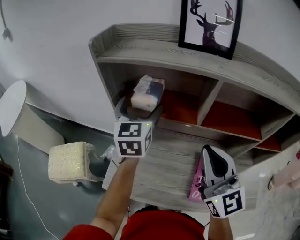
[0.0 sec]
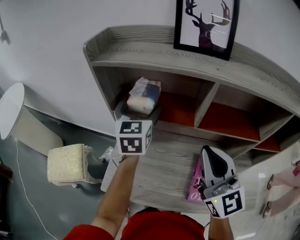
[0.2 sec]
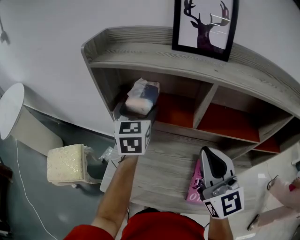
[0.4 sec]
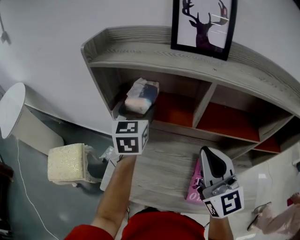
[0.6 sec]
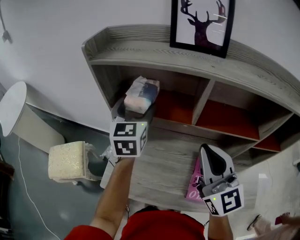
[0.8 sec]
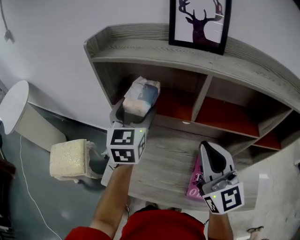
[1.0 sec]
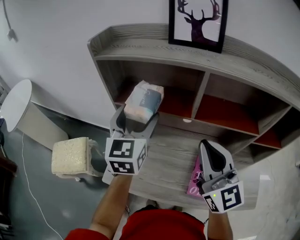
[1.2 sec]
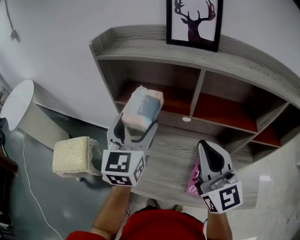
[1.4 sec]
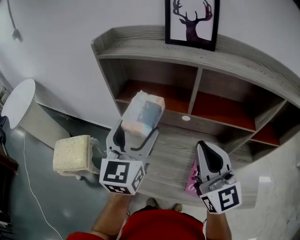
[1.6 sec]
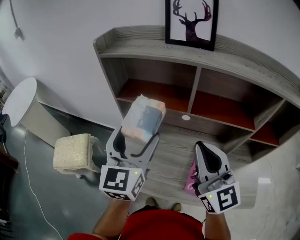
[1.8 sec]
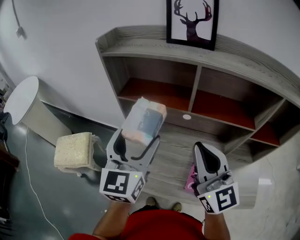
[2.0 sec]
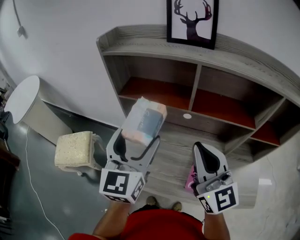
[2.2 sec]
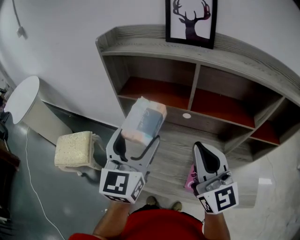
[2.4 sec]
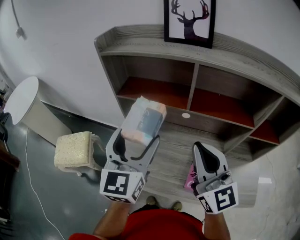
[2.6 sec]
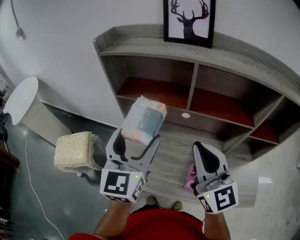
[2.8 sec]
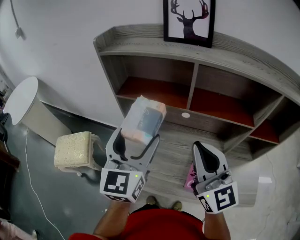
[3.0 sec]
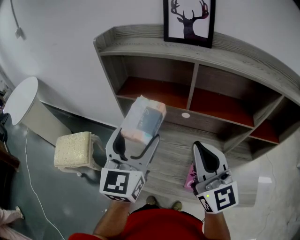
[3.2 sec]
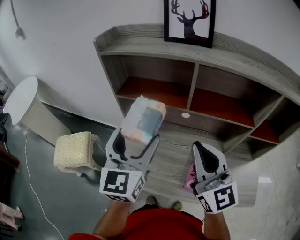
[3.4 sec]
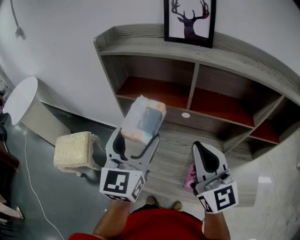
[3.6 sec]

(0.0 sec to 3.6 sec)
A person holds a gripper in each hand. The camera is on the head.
0.0 sec - 1.8 sec: The right gripper goes some 5 cm backward. Meanwhile the left gripper heads backward, covering roughly 20 cm.
1.8 sec - 3.6 sec: The grippers make only small movements.

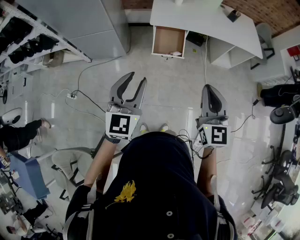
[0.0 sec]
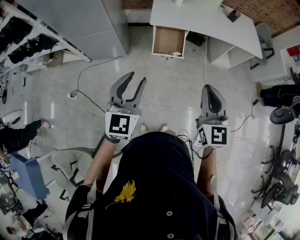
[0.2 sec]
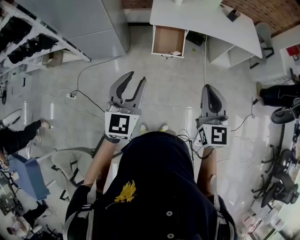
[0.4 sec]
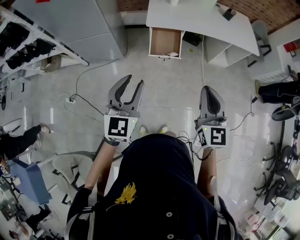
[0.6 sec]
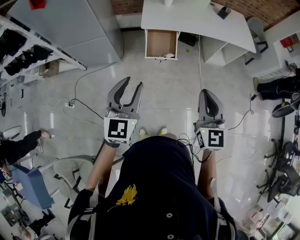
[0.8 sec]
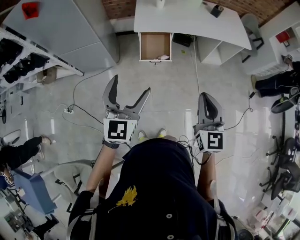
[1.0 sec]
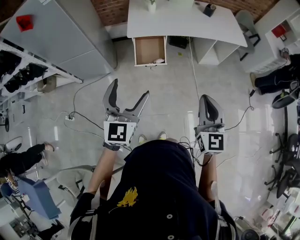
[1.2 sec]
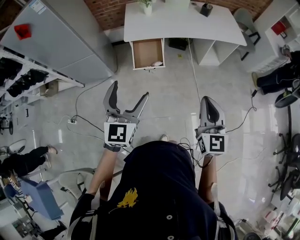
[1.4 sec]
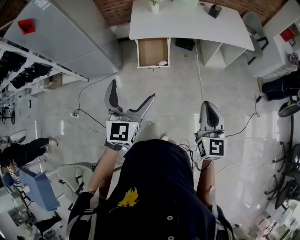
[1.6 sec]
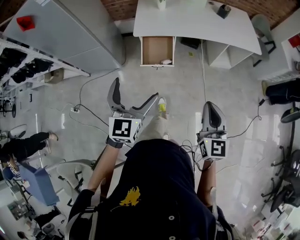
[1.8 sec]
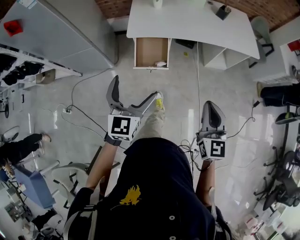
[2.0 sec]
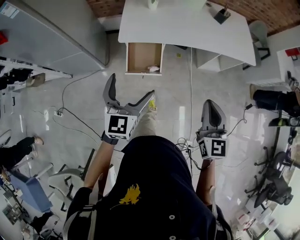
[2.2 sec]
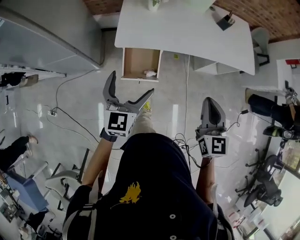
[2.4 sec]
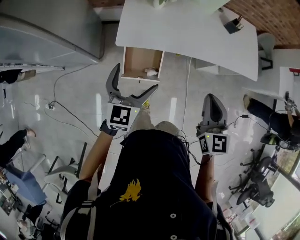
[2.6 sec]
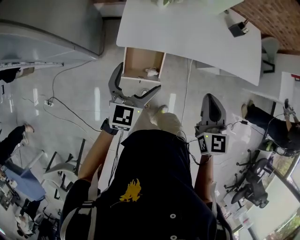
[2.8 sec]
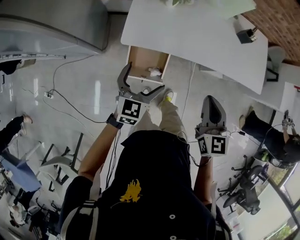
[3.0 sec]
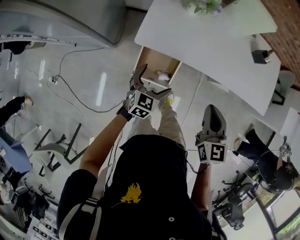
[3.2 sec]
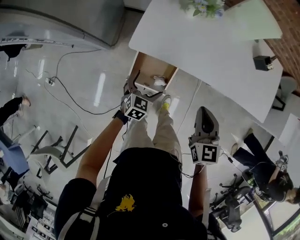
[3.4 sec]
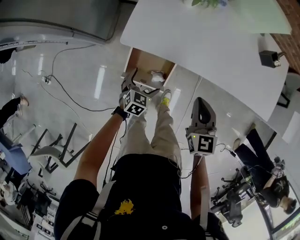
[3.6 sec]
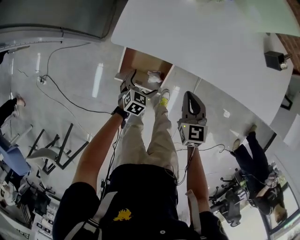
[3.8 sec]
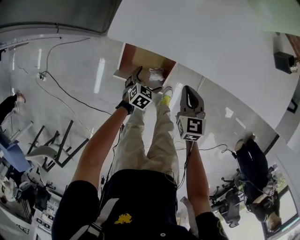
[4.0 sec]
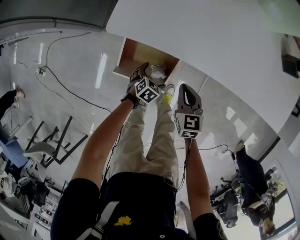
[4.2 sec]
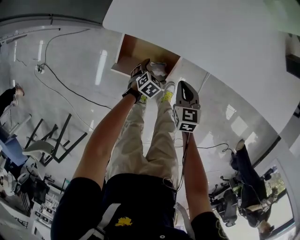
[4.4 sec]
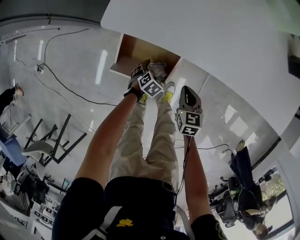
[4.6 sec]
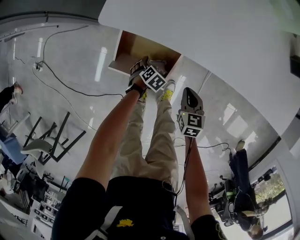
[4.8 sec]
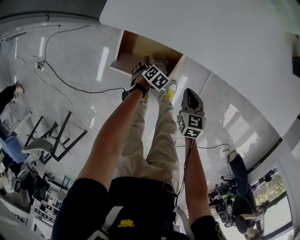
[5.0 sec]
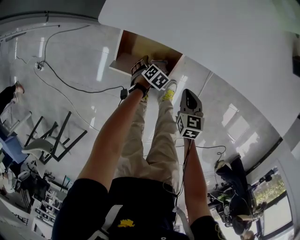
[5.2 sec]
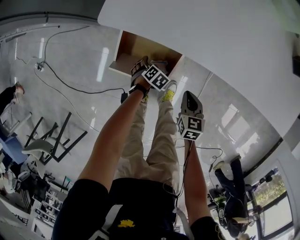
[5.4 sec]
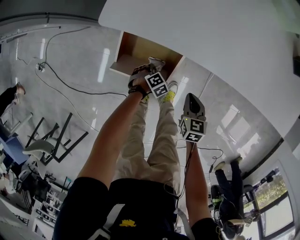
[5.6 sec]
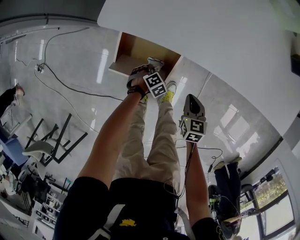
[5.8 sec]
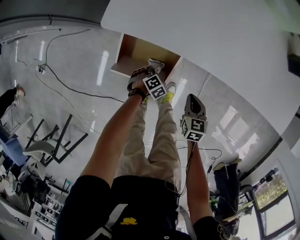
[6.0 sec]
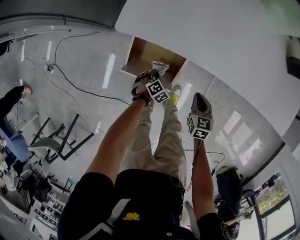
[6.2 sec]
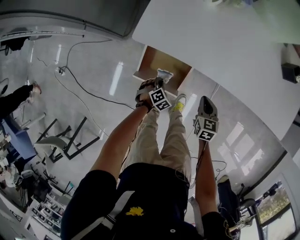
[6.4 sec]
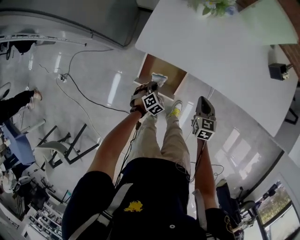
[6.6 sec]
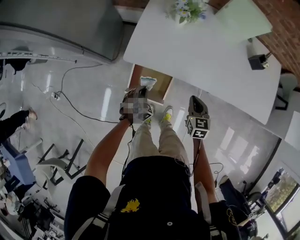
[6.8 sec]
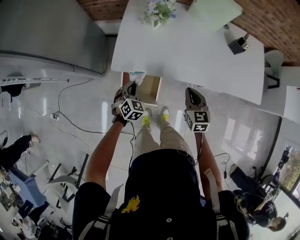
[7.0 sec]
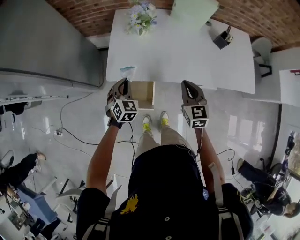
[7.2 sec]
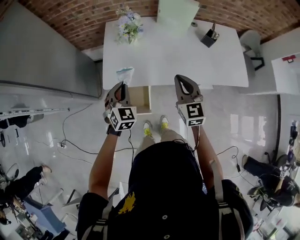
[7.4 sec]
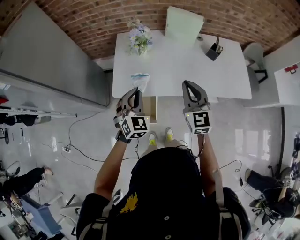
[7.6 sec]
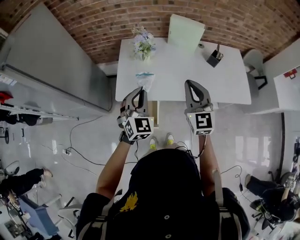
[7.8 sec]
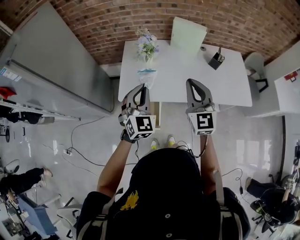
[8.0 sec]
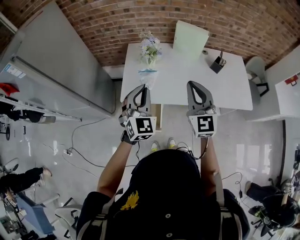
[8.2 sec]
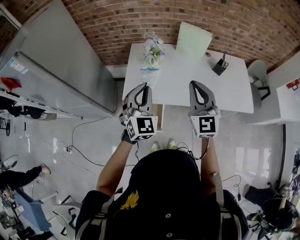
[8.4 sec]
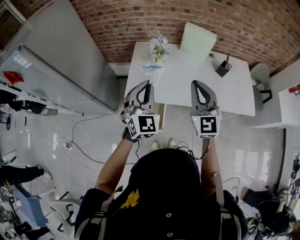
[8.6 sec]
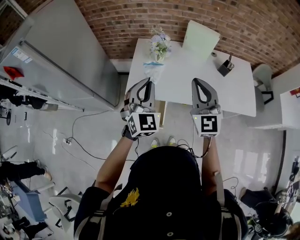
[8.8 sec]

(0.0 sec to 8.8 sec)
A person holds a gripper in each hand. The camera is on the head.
0.0 sec - 1.4 sec: The grippers both shift to the right by roughly 15 cm. The left gripper opens.
1.4 sec - 3.0 sec: The pair of grippers is taken forward, roughly 50 cm. The right gripper rotates approximately 20 degrees. Meanwhile the left gripper goes some 20 cm downward, and swivels roughly 20 degrees.
3.0 sec - 4.4 sec: The two grippers go about 50 cm downward. The right gripper turns by roughly 20 degrees, while the left gripper tilts its fingers about 40 degrees downward.
4.4 sec - 5.8 sec: The right gripper ends up about 10 cm from where it was. Meanwhile the left gripper heads downward, covering about 5 cm, changes its angle by roughly 30 degrees, and closes its fingers.
5.8 sec - 7.4 sec: Both grippers travel together upward, approximately 60 cm. The left gripper tips its fingers upward by about 50 degrees; the right gripper tips its fingers upward by some 40 degrees.
7.4 sec - 8.8 sec: Both grippers travel together upward, about 20 cm. The right gripper swivels approximately 20 degrees. The left gripper rotates roughly 20 degrees.

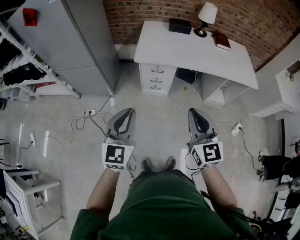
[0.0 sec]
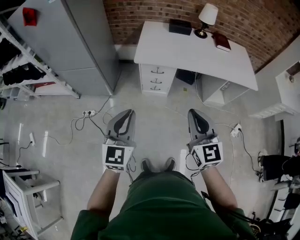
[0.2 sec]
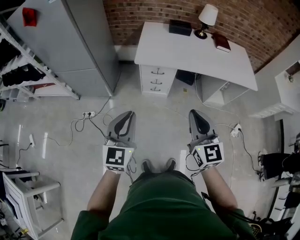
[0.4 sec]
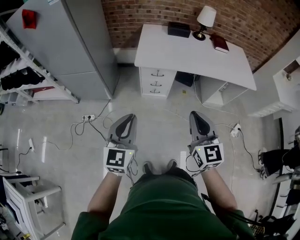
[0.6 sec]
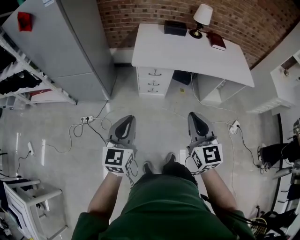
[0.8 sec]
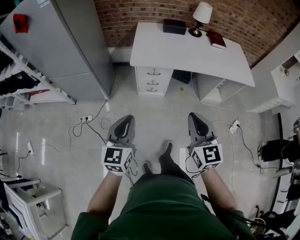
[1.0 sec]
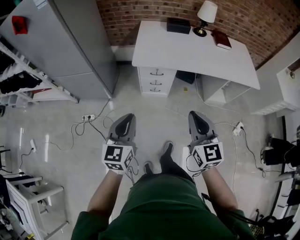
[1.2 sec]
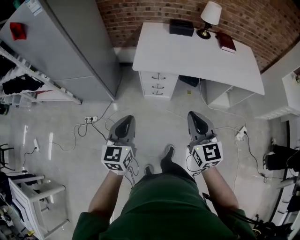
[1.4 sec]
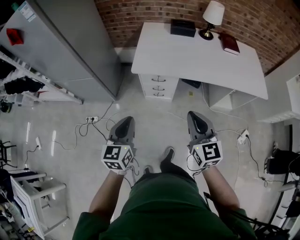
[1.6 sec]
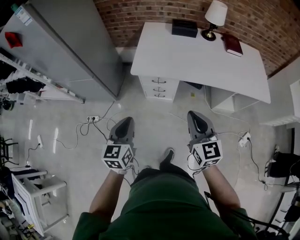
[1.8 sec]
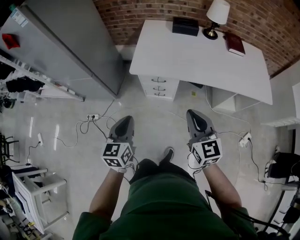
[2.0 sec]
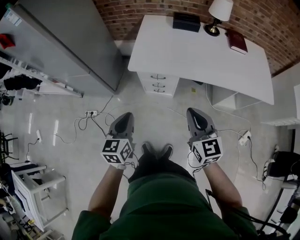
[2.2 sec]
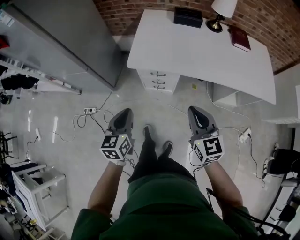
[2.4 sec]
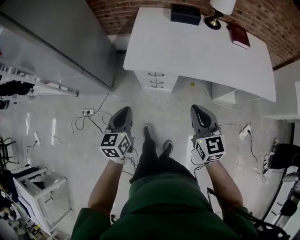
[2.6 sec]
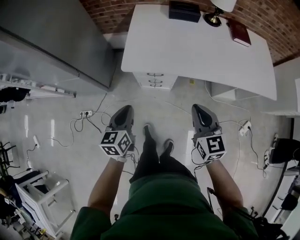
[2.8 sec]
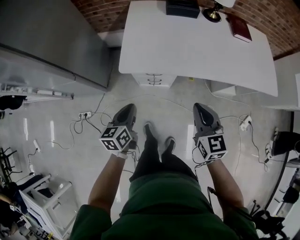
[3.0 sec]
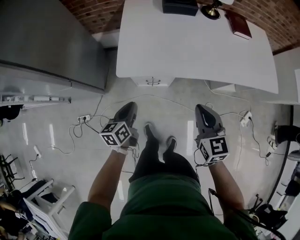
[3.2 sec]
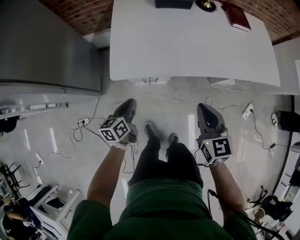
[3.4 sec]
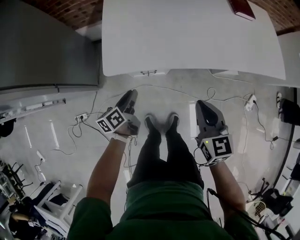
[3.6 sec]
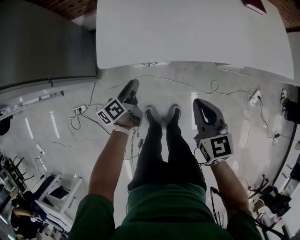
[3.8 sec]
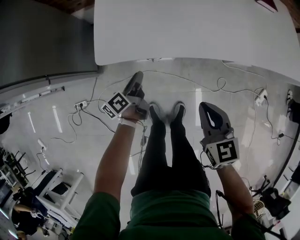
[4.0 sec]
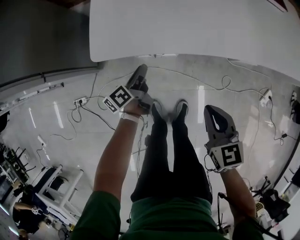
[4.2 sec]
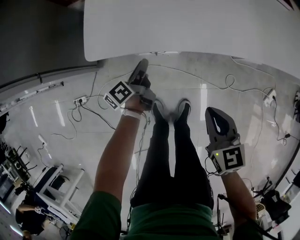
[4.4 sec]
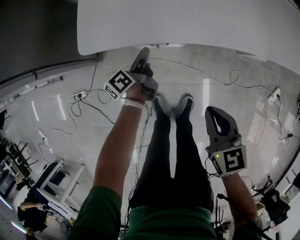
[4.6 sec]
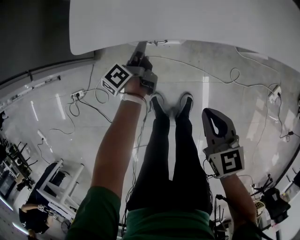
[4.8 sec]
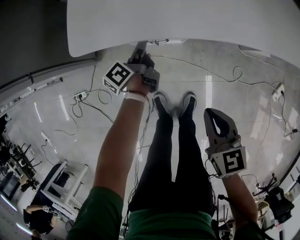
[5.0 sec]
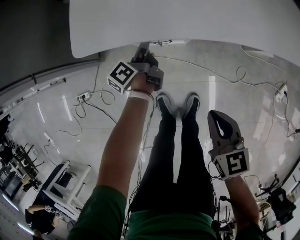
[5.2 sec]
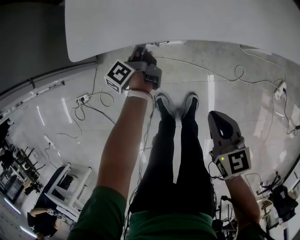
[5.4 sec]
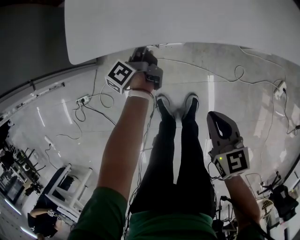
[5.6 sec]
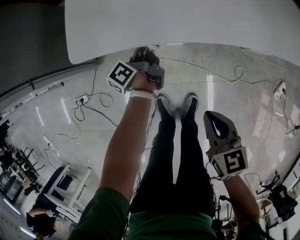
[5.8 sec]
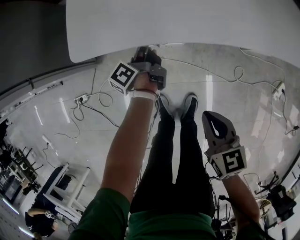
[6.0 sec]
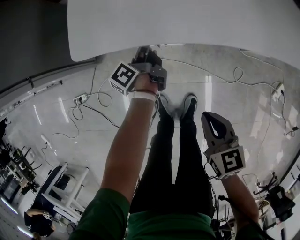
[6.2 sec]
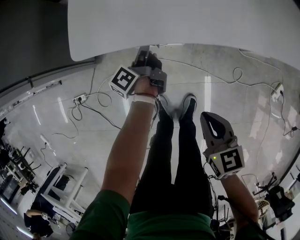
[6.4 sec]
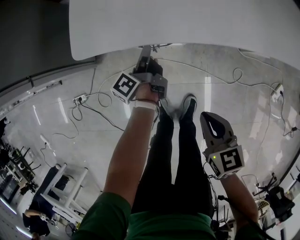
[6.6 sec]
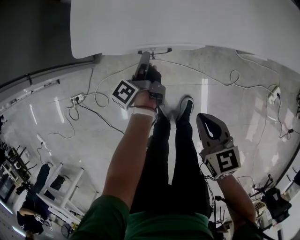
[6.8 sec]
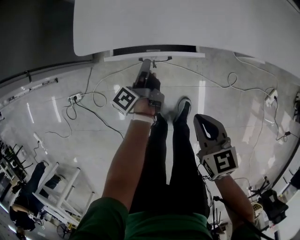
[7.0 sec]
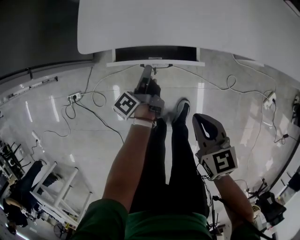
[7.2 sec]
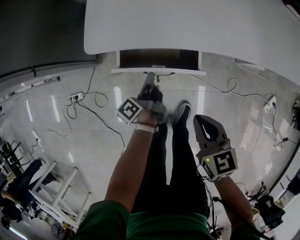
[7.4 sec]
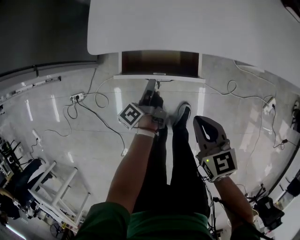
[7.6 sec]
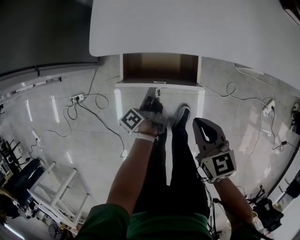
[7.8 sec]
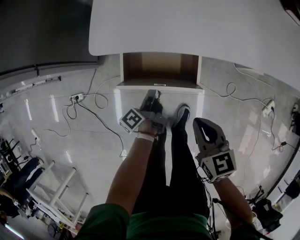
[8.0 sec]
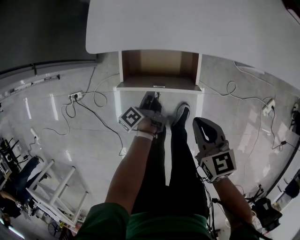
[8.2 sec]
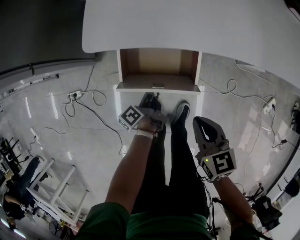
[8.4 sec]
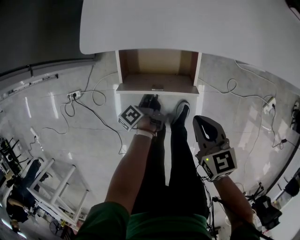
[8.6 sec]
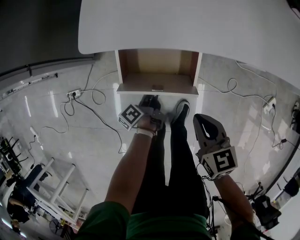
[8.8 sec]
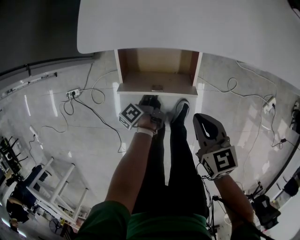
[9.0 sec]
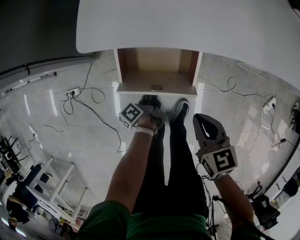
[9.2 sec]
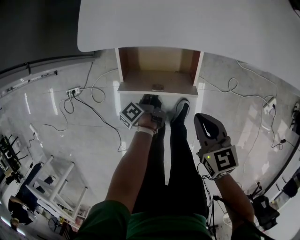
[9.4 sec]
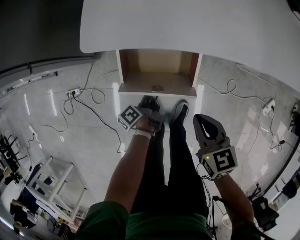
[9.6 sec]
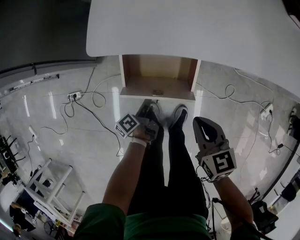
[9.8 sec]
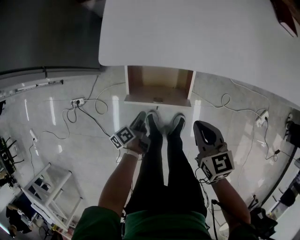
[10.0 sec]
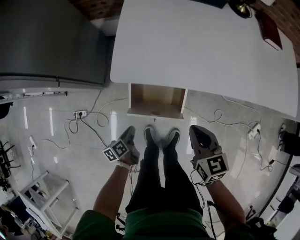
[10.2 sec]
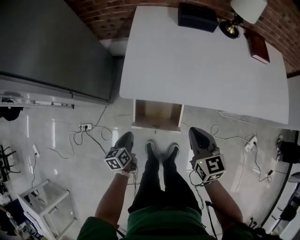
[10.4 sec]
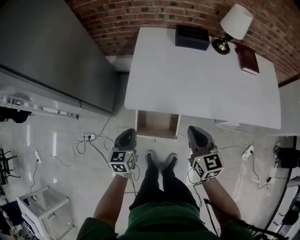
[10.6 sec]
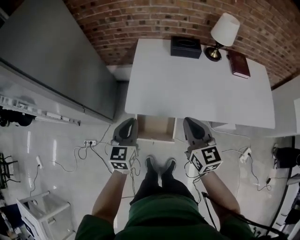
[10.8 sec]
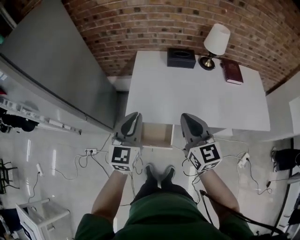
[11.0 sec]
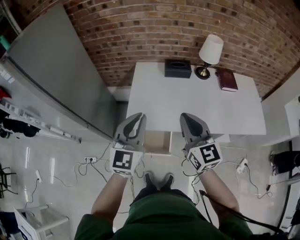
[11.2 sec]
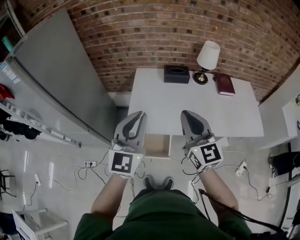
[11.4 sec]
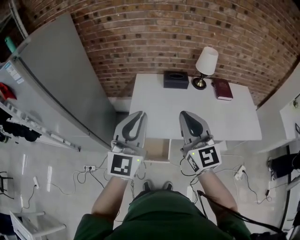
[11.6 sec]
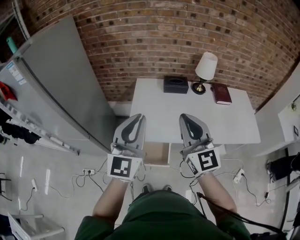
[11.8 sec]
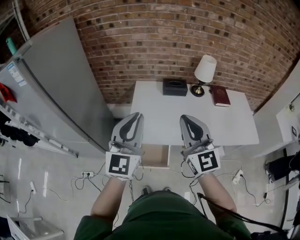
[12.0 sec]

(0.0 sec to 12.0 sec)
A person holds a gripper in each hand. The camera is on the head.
0.0 sec - 1.6 sec: The two grippers go roughly 15 cm forward and downward. The left gripper rotates some 20 degrees.
1.6 sec - 3.0 sec: The grippers both shift forward and downward by roughly 20 cm. The left gripper changes its angle by some 20 degrees.
3.0 sec - 4.4 sec: The left gripper travels downward and forward by approximately 30 cm, changes its angle by approximately 40 degrees, and opens up; the right gripper shifts some 20 cm downward.
4.4 sec - 6.0 sec: The right gripper moves downward, approximately 5 cm, while the left gripper shifts some 5 cm forward.
6.0 sec - 7.6 sec: The left gripper moves backward, some 15 cm.
7.6 sec - 9.0 sec: The left gripper shifts about 10 cm downward.
9.0 sec - 10.4 sec: The left gripper moves upward and to the left, approximately 25 cm, and rolls clockwise, seen from behind, by about 50 degrees, while the right gripper goes roughly 20 cm upward and forward.
10.4 sec - 12.0 sec: Both grippers travel together upward, approximately 50 cm. The left gripper angles its fingers upward, by roughly 50 degrees. Meanwhile the right gripper points its fingers some 40 degrees further upward.
